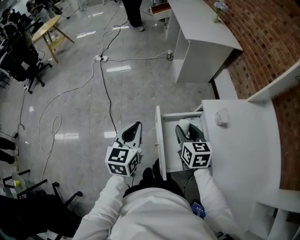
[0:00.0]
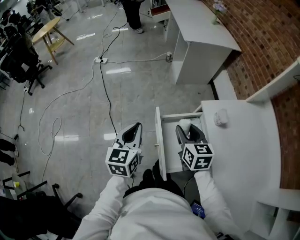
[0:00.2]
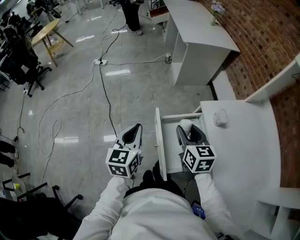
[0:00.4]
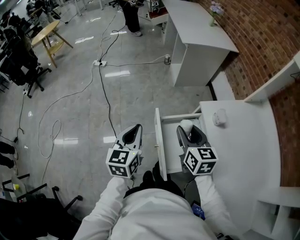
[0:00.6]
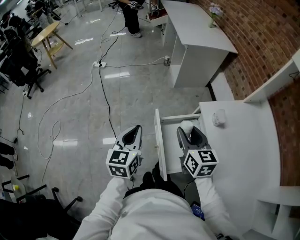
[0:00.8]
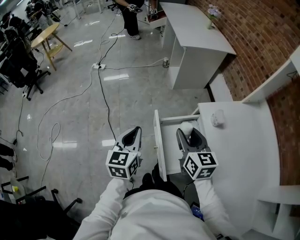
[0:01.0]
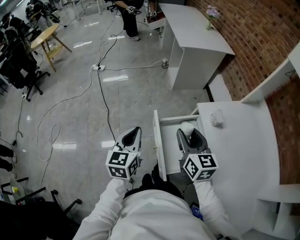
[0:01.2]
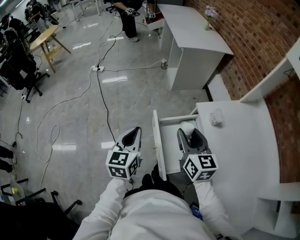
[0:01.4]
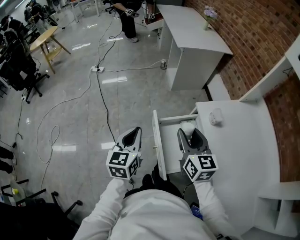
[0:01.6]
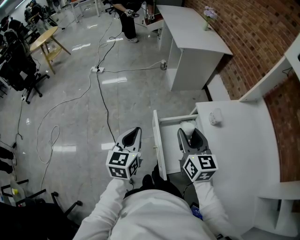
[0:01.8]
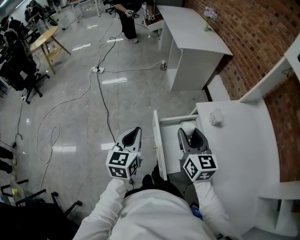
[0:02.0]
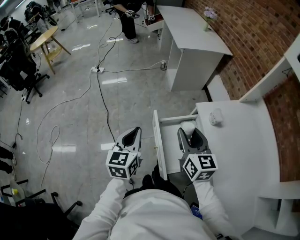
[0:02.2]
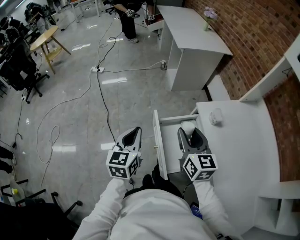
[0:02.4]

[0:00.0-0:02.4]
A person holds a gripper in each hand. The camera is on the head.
0:00.0 to 0:01.2: The right gripper heads upward, covering about 10 cm.
0:01.2 to 0:02.4: Both grippers stay put.

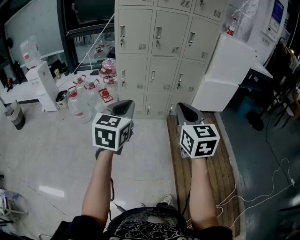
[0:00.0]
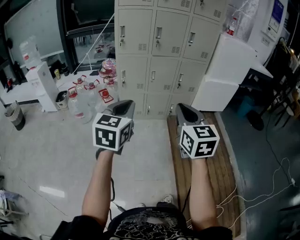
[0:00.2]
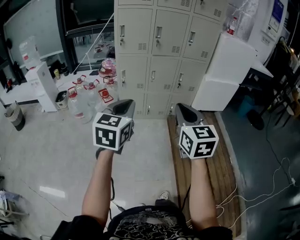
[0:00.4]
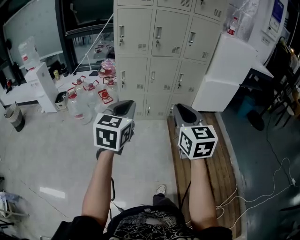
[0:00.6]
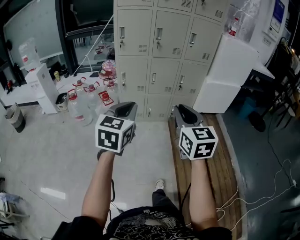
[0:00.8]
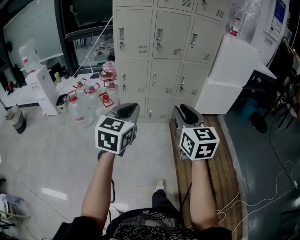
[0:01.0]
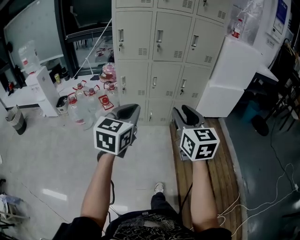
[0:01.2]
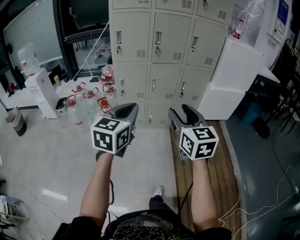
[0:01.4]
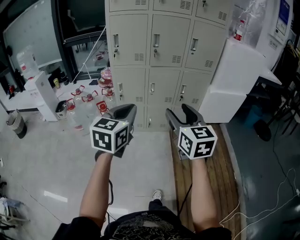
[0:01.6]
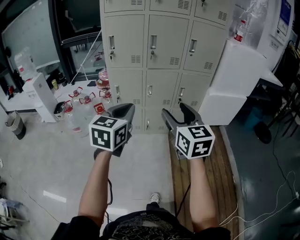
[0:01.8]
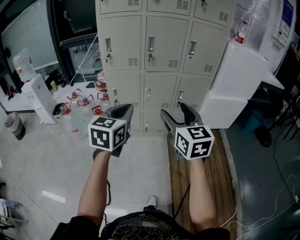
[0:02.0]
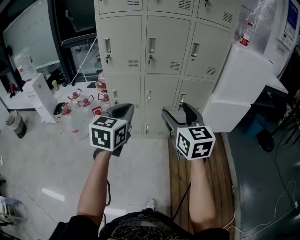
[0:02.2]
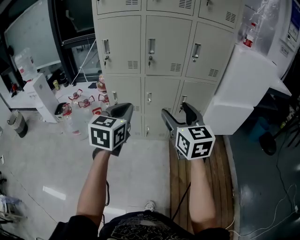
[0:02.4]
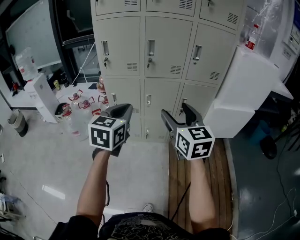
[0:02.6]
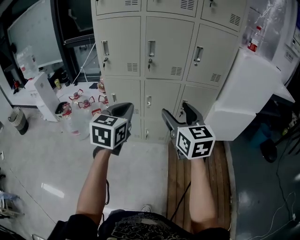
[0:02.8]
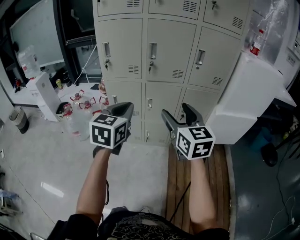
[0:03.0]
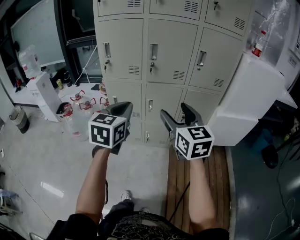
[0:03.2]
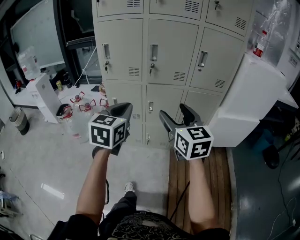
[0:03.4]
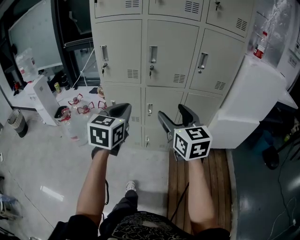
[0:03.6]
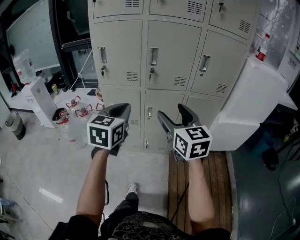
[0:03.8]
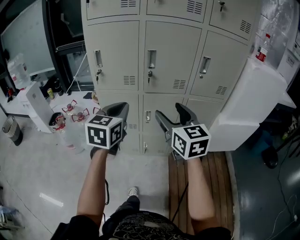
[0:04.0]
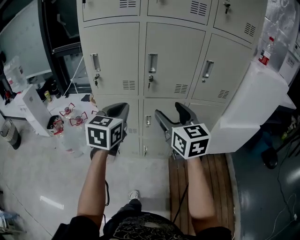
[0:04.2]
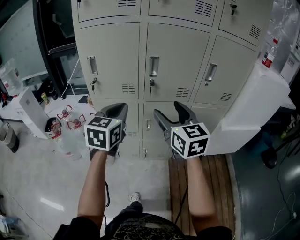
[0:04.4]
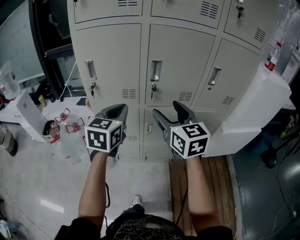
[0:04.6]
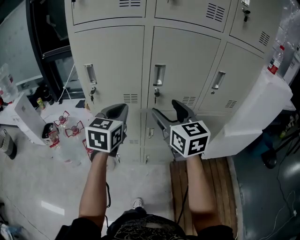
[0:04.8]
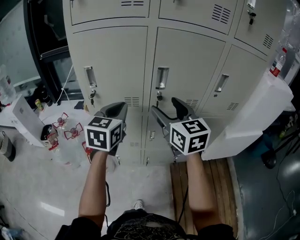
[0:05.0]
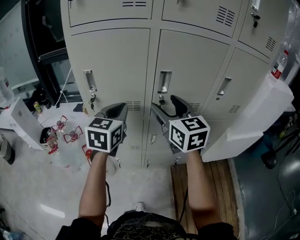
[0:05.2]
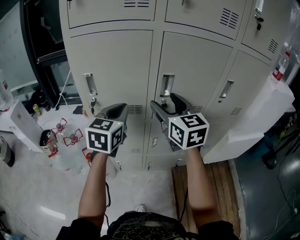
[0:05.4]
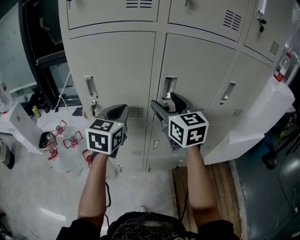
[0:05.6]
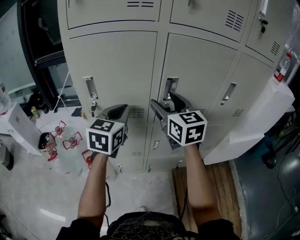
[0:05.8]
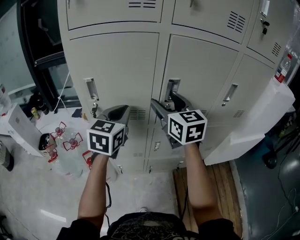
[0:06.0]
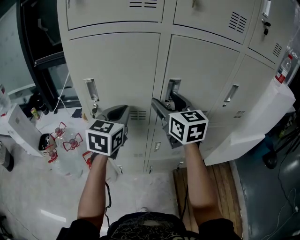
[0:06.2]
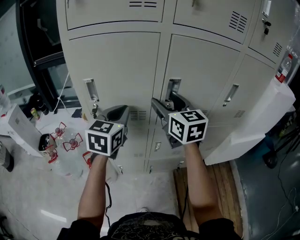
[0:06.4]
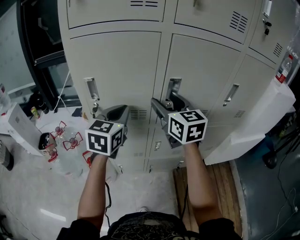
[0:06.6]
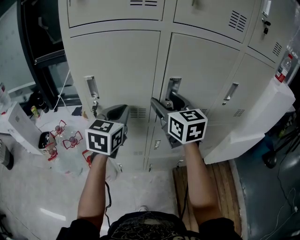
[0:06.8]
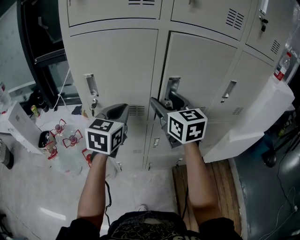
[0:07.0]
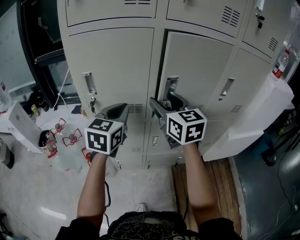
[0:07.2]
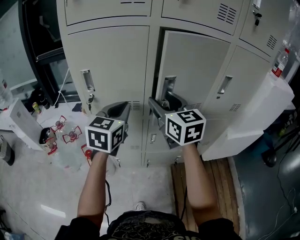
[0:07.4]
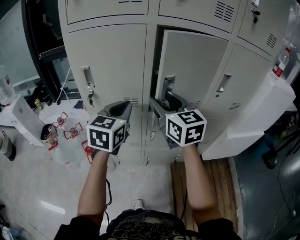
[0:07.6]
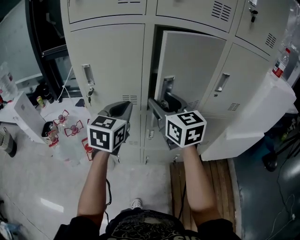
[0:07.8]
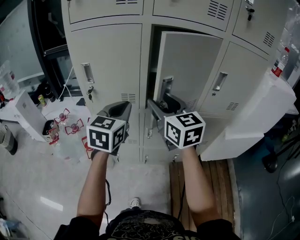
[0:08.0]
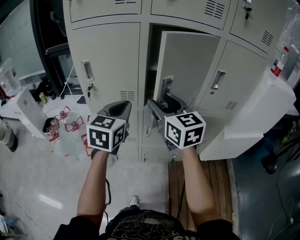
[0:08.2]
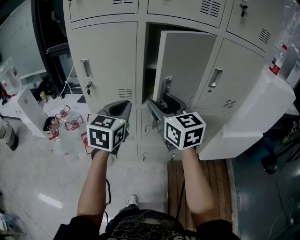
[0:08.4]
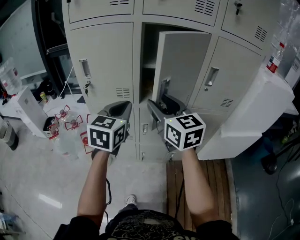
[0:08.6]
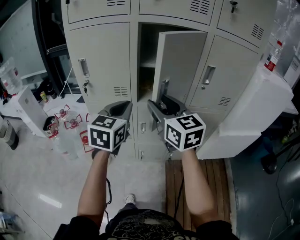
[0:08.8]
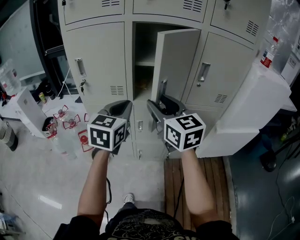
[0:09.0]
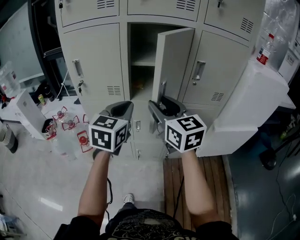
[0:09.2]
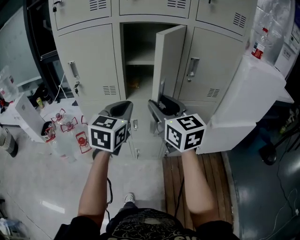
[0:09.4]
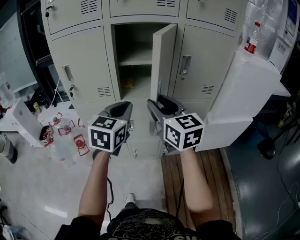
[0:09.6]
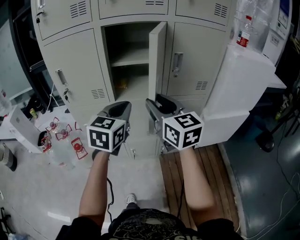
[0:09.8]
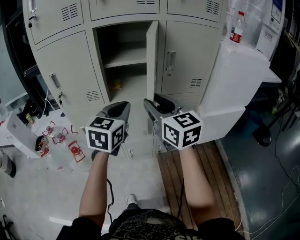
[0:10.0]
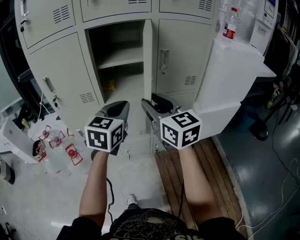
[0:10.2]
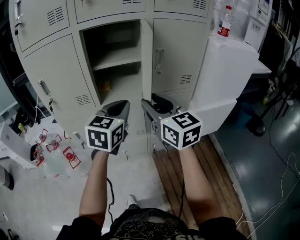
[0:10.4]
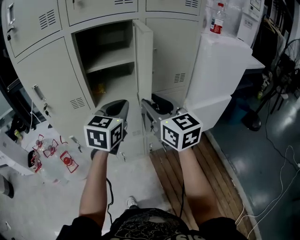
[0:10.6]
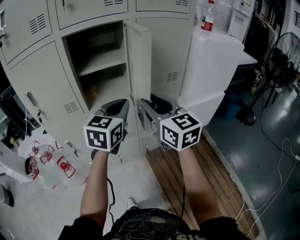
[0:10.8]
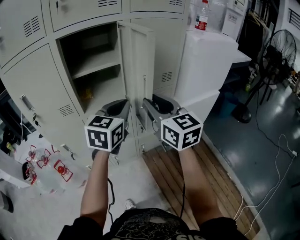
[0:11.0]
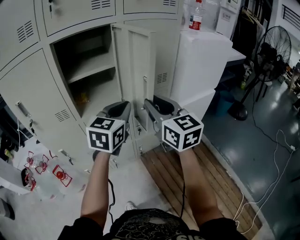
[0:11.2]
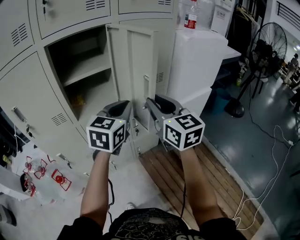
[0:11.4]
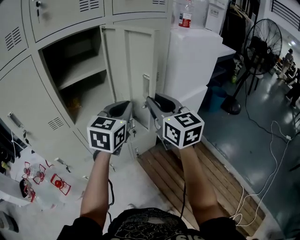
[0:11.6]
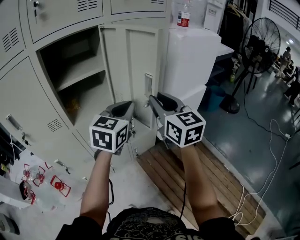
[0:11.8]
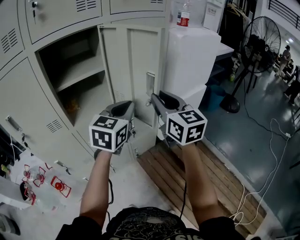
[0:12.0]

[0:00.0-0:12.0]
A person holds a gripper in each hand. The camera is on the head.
0:00.0 to 0:01.6: The two grippers go about 15 cm forward. The right gripper opens up.
0:01.6 to 0:03.0: Both grippers travel together forward, some 20 cm.
0:03.0 to 0:04.4: Both grippers travel together forward, approximately 20 cm.
0:04.4 to 0:06.0: Both grippers travel together forward, roughly 15 cm.
0:06.0 to 0:07.6: Both grippers move backward, roughly 5 cm.
0:07.6 to 0:09.0: The grippers both shift backward and to the right by roughly 10 cm.
0:09.0 to 0:10.4: Both grippers travel together to the right, some 10 cm.
0:10.4 to 0:12.0: The two grippers go roughly 10 cm to the right. The right gripper changes its angle by roughly 30 degrees; the left gripper turns by some 20 degrees.

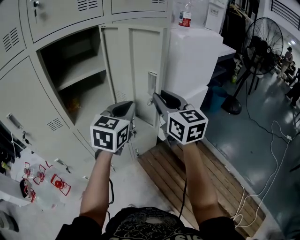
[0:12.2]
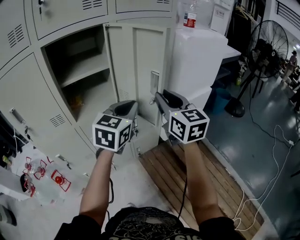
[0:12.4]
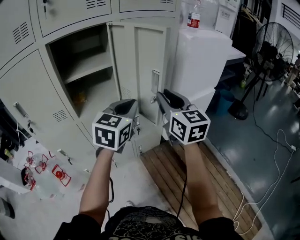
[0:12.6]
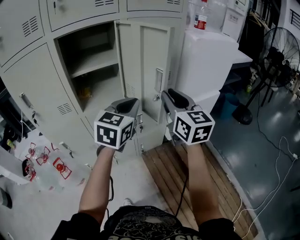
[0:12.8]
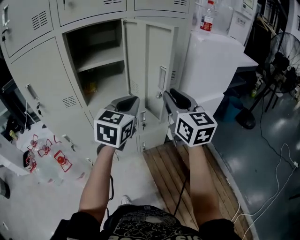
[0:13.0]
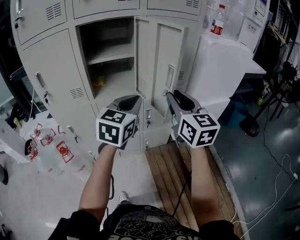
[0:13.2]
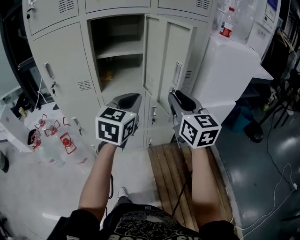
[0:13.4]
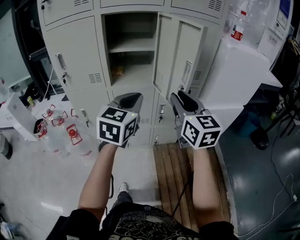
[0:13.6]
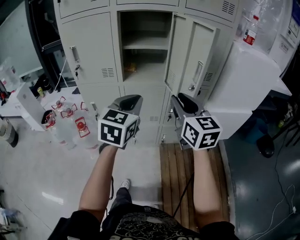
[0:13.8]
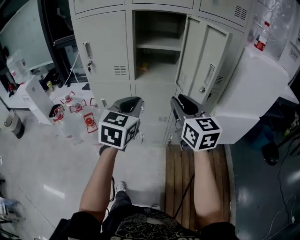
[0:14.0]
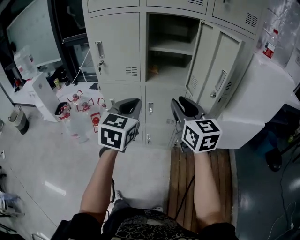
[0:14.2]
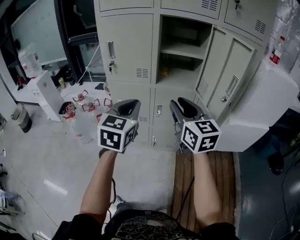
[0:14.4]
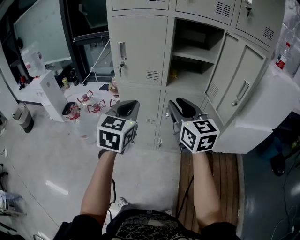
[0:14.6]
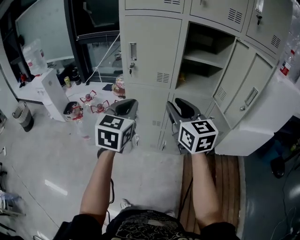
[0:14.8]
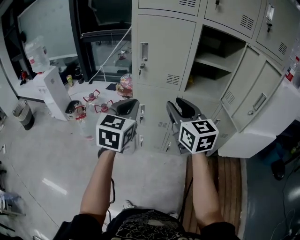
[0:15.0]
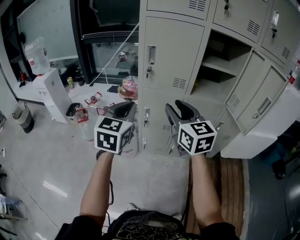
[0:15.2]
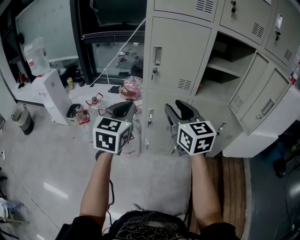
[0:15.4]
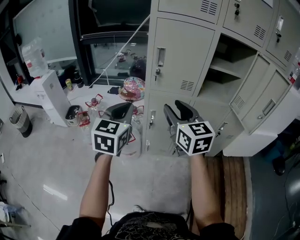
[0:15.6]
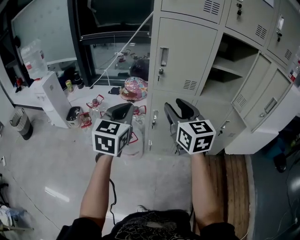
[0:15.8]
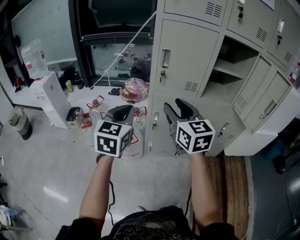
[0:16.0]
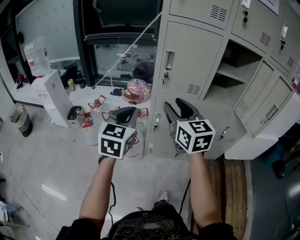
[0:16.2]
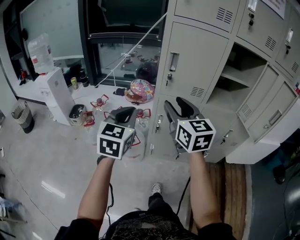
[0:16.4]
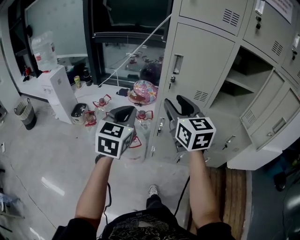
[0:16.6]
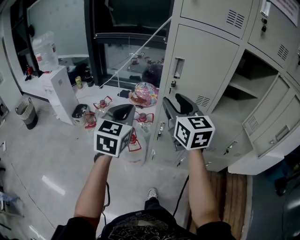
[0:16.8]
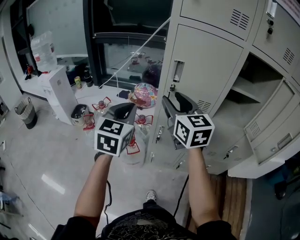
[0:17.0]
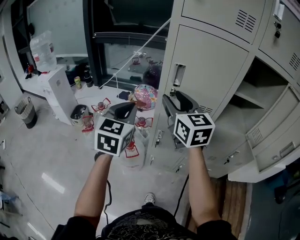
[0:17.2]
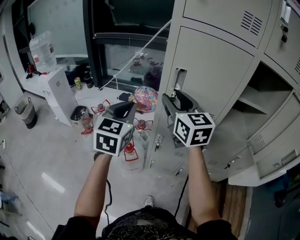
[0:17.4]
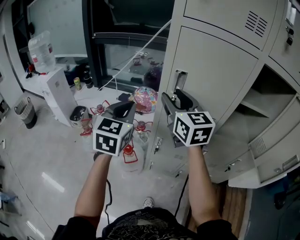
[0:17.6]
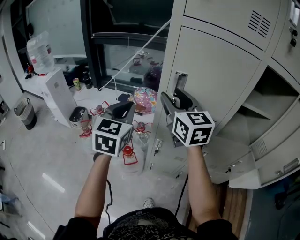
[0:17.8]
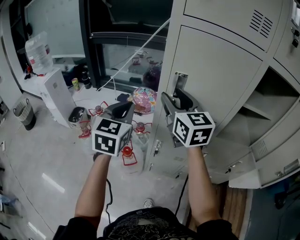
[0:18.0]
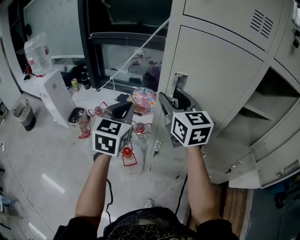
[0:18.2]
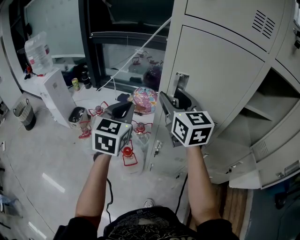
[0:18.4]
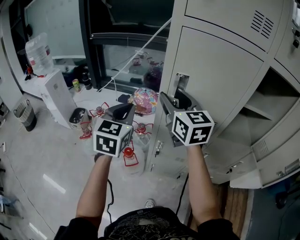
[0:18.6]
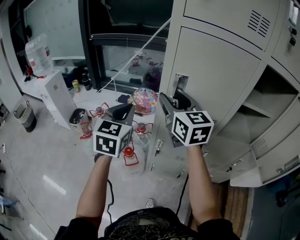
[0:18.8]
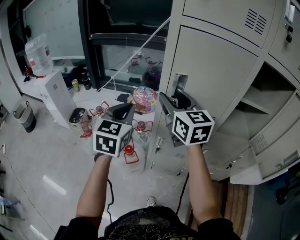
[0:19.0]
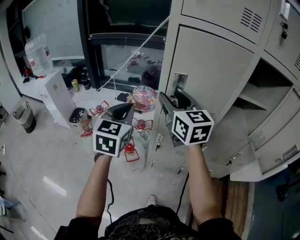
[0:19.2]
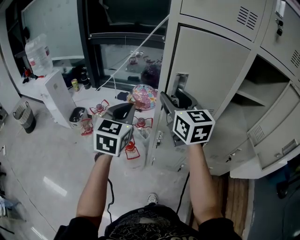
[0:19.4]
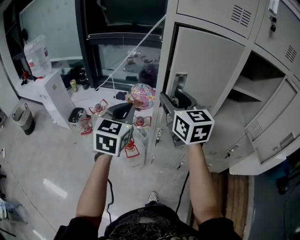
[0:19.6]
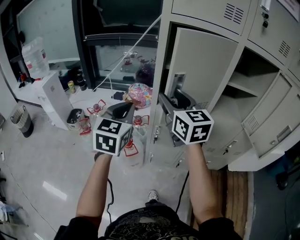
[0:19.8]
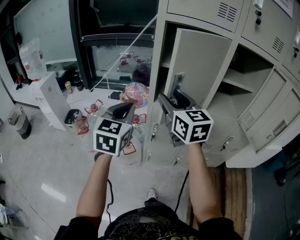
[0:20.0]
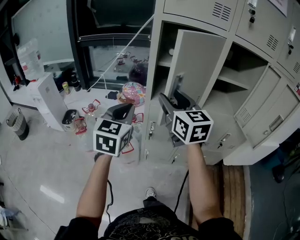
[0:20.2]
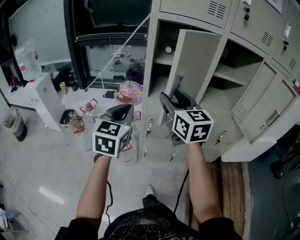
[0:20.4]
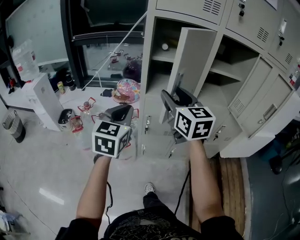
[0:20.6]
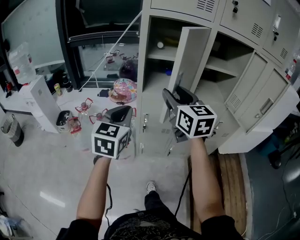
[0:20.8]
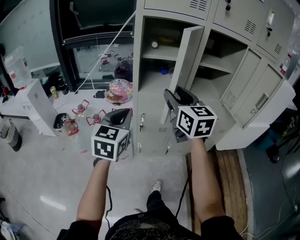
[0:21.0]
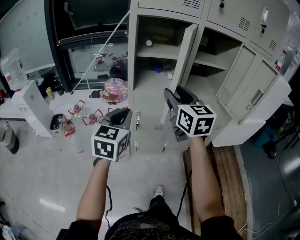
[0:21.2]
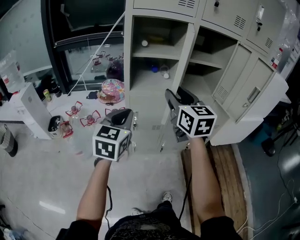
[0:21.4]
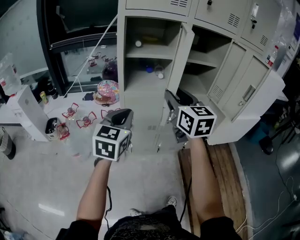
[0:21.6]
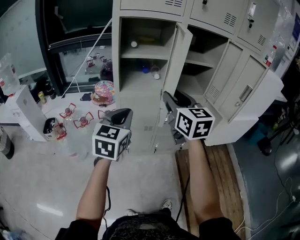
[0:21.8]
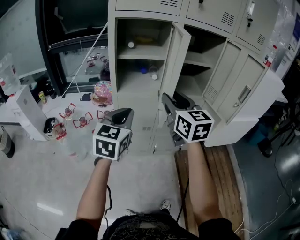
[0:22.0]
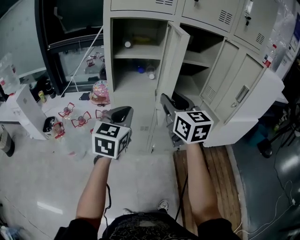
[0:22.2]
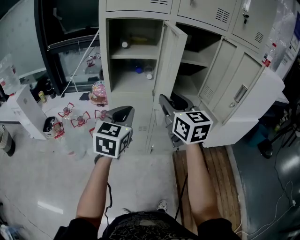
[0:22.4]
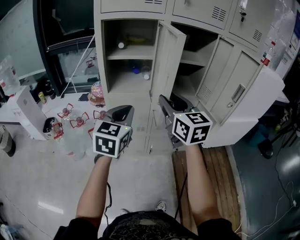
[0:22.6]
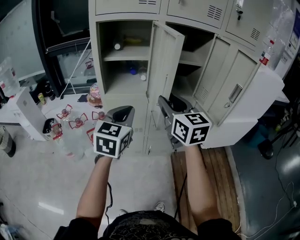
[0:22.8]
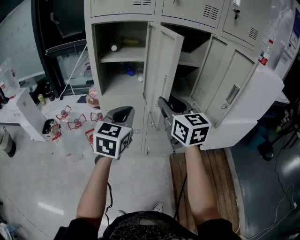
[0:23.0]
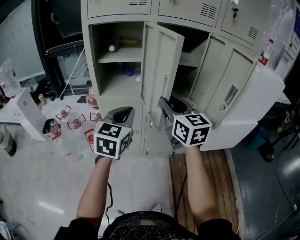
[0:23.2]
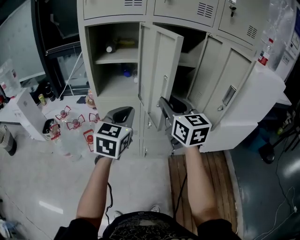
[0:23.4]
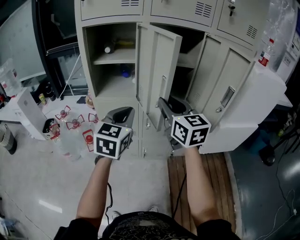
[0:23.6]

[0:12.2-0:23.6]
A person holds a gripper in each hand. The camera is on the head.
0:12.2 to 0:13.6: The right gripper travels backward by about 5 cm. The left gripper shifts approximately 15 cm backward and to the left, and swivels approximately 30 degrees.
0:13.6 to 0:15.0: Both grippers move to the left, some 35 cm.
0:15.0 to 0:16.4: The right gripper shifts approximately 15 cm to the left and forward. The left gripper travels to the left by roughly 15 cm.
0:16.4 to 0:17.8: Both grippers travel together forward, some 20 cm.
0:17.8 to 0:19.4: The right gripper moves roughly 5 cm.
0:19.4 to 0:20.8: The right gripper moves backward and to the right, approximately 15 cm, while the left gripper heads backward, covering about 10 cm.
0:20.8 to 0:22.2: The two grippers go about 15 cm to the right.
0:22.2 to 0:23.6: Both grippers move to the right, about 15 cm.
